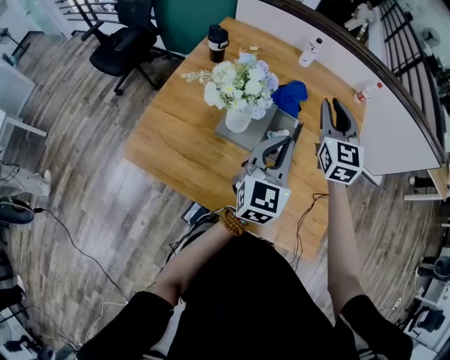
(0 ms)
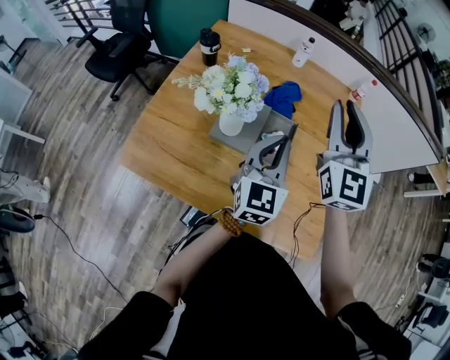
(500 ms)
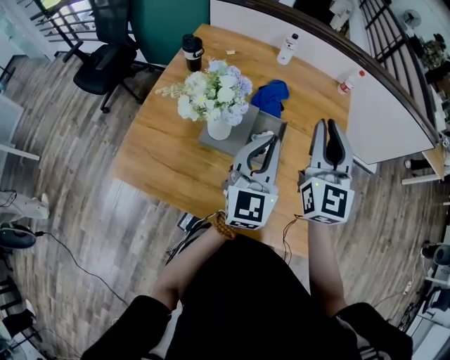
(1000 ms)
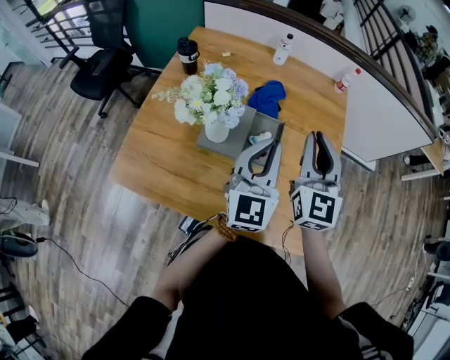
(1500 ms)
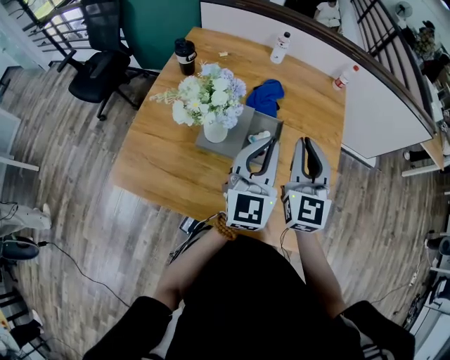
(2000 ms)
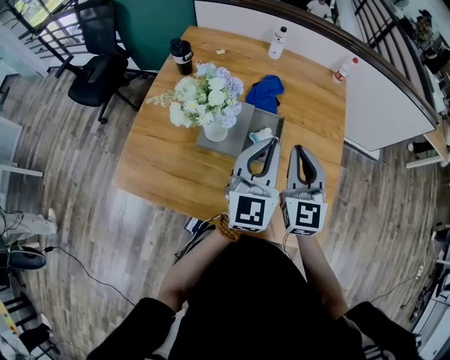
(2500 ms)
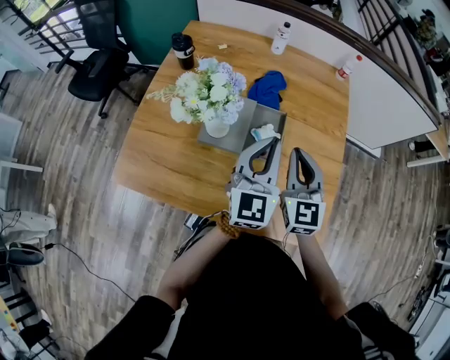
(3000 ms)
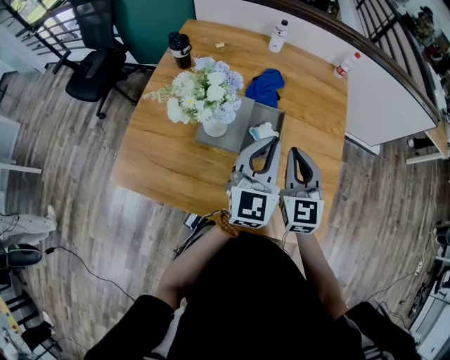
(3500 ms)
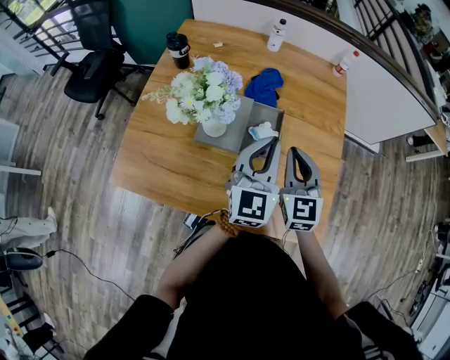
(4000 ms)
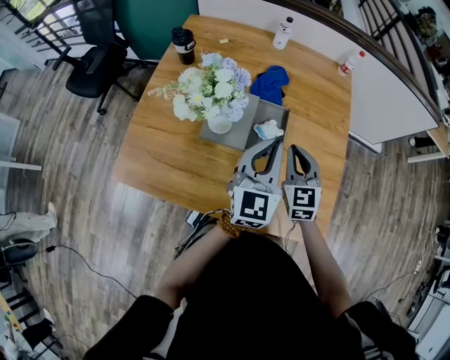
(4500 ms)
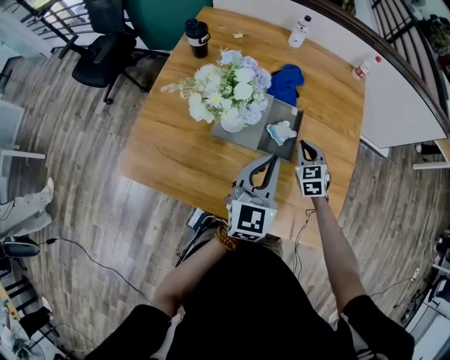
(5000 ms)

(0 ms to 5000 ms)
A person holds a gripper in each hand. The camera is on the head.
0 ms - 2500 ms: The right gripper travels backward by approximately 15 cm, and moves roughly 10 cm upward and comes back.
2500 ms - 5000 ms: The right gripper is displaced downward by approximately 20 cm, and tips its fingers downward by some 30 degrees. The left gripper heads downward, covering some 10 cm.

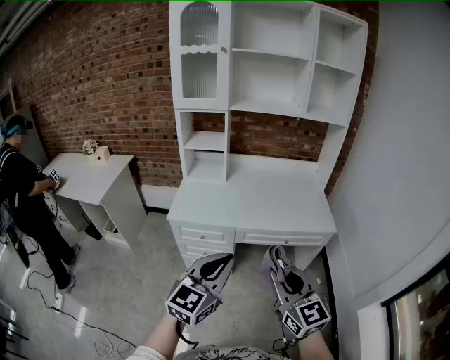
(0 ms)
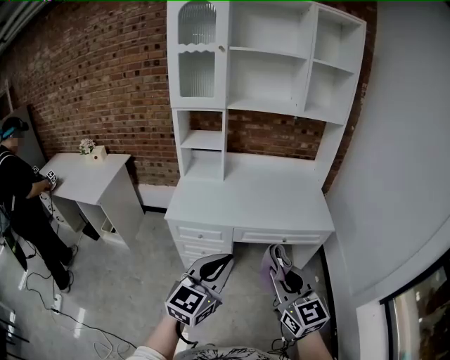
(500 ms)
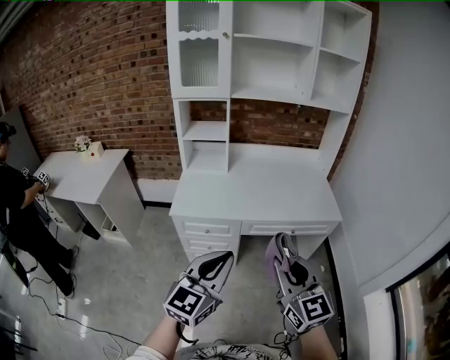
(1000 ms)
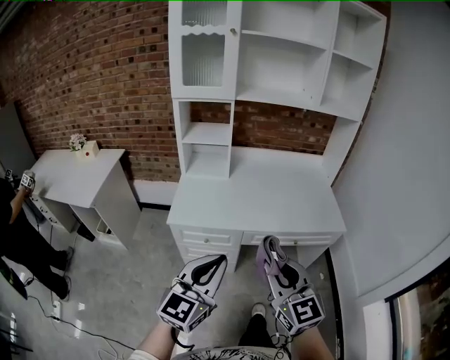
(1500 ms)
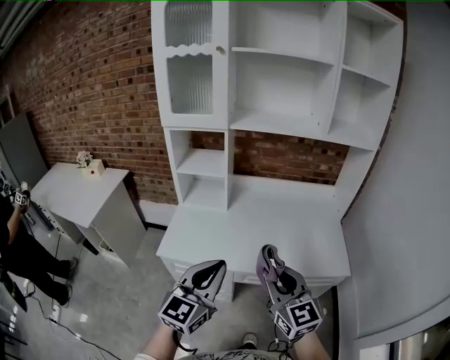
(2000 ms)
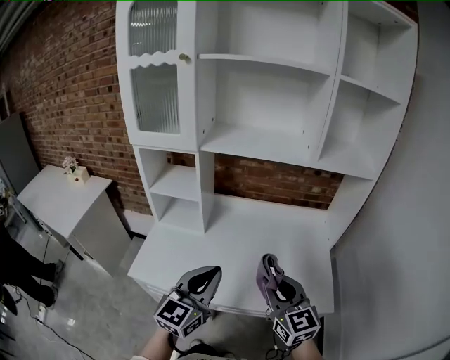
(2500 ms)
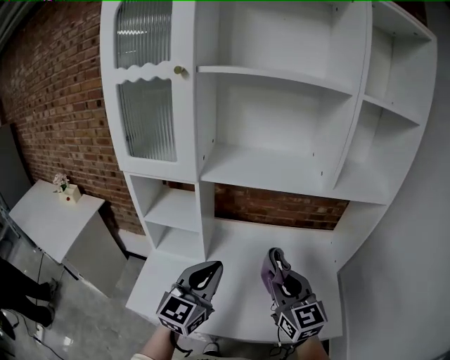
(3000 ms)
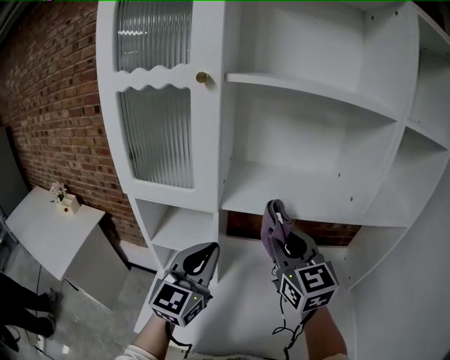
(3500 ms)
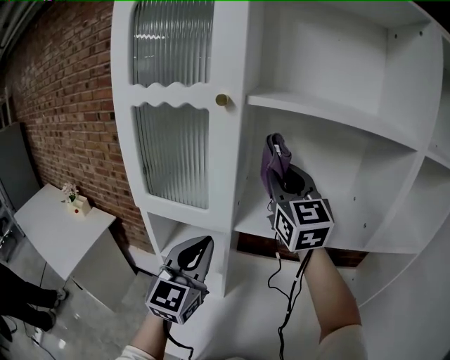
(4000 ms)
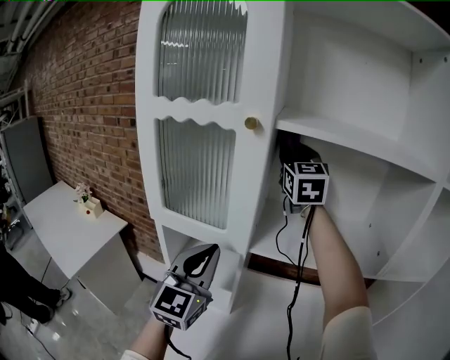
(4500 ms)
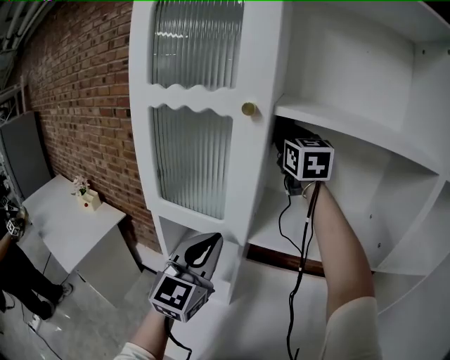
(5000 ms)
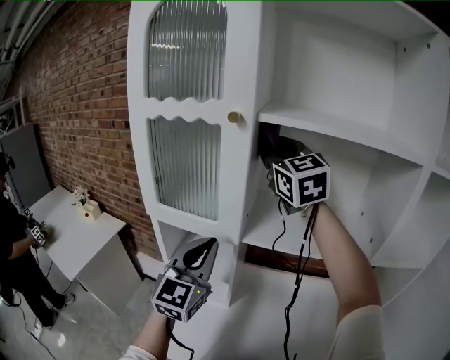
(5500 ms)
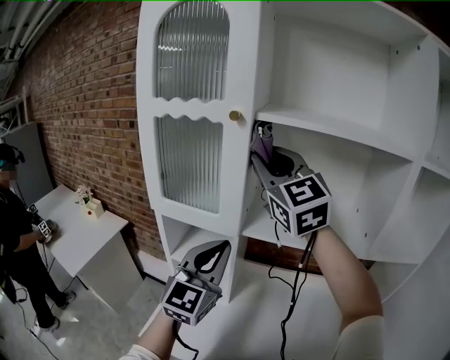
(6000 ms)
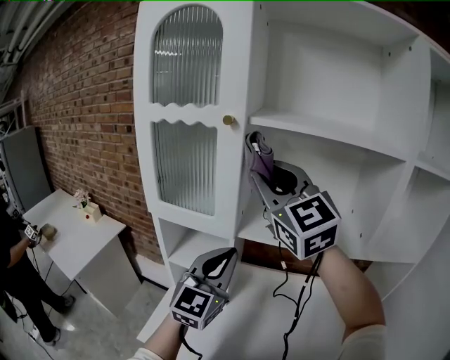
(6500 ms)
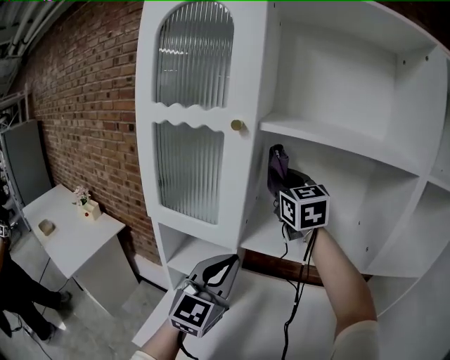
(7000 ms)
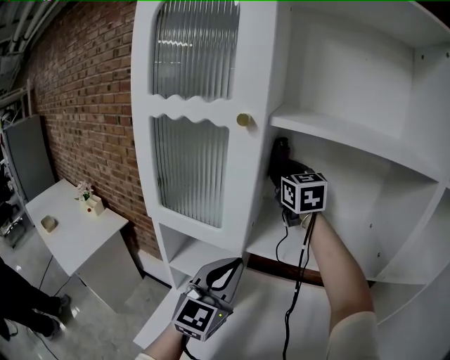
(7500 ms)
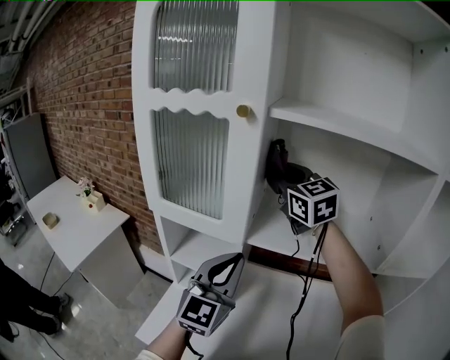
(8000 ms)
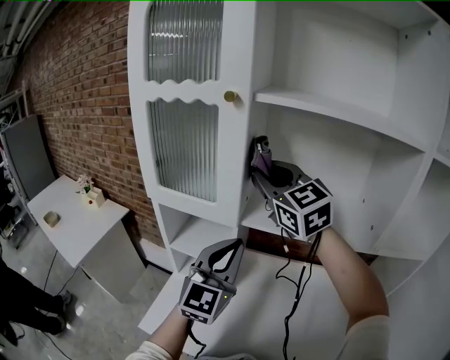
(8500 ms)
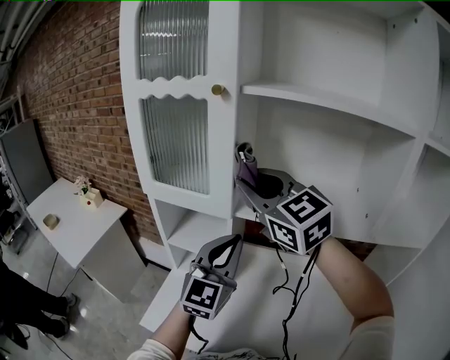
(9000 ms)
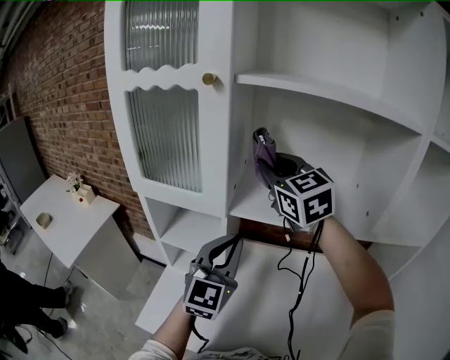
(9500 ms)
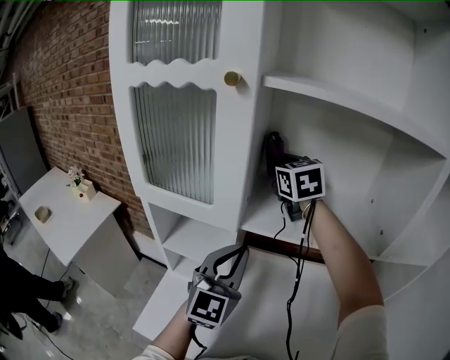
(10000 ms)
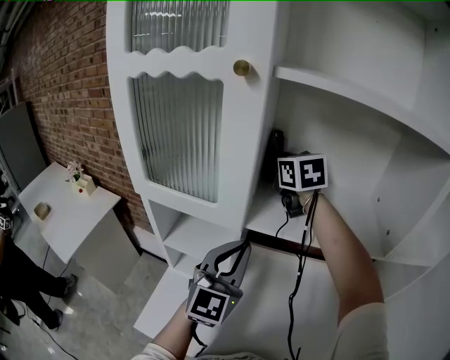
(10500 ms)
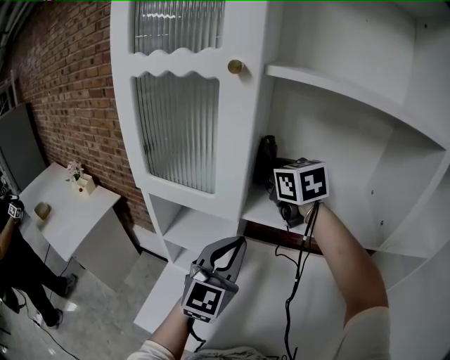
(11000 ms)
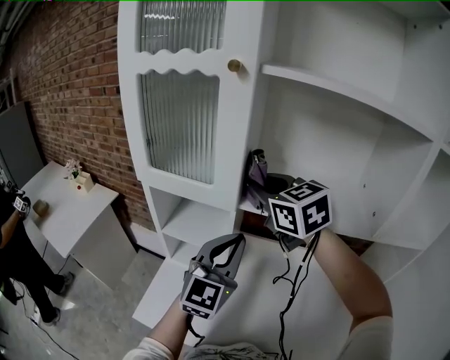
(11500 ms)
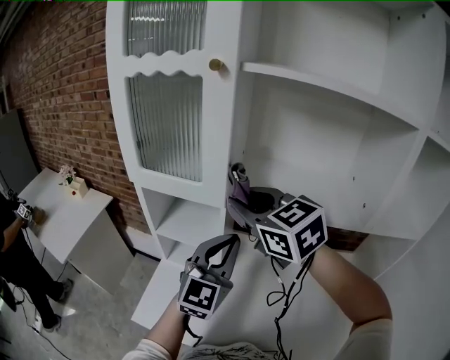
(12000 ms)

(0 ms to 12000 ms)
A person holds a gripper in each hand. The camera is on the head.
0 ms - 2000 ms: The two grippers go about 25 cm forward.
2000 ms - 4000 ms: The two grippers travel together, forward, roughly 50 cm. The right gripper is displaced upward by some 30 cm.
4000 ms - 6000 ms: The right gripper is displaced to the left and upward by about 10 cm, and travels forward and back again, about 15 cm each way.
6000 ms - 8000 ms: The left gripper moves some 5 cm; the right gripper swings forward and backward, approximately 25 cm each way, with 2 reversals.
8000 ms - 10000 ms: The right gripper shifts roughly 5 cm downward, and reaches approximately 15 cm backward, then returns.
10000 ms - 12000 ms: The right gripper is displaced backward by approximately 20 cm, and rotates approximately 20 degrees.

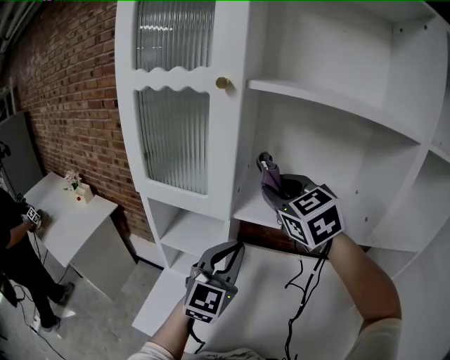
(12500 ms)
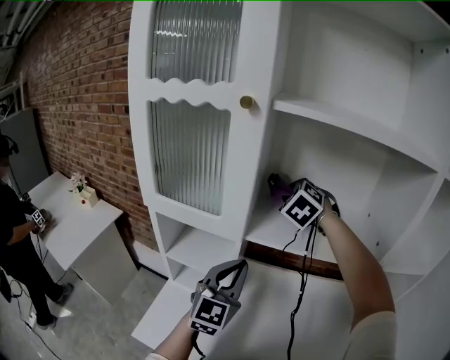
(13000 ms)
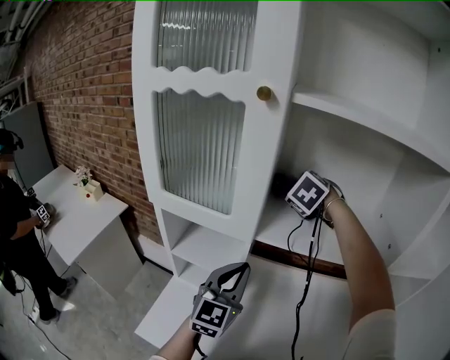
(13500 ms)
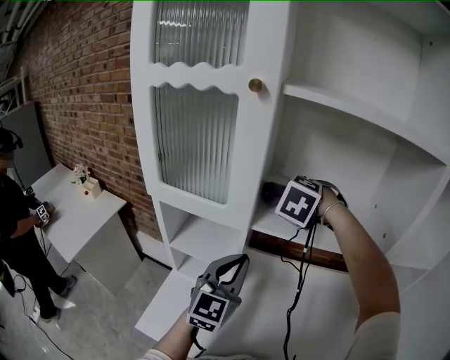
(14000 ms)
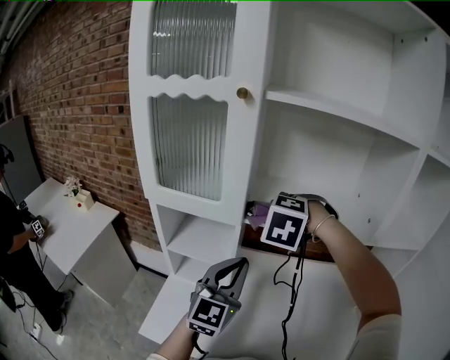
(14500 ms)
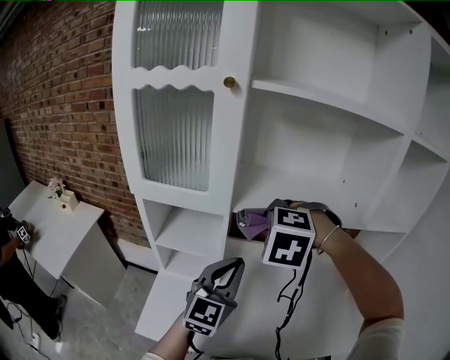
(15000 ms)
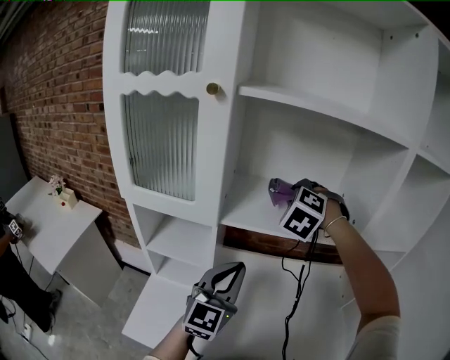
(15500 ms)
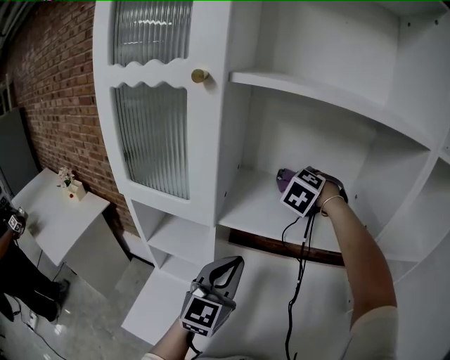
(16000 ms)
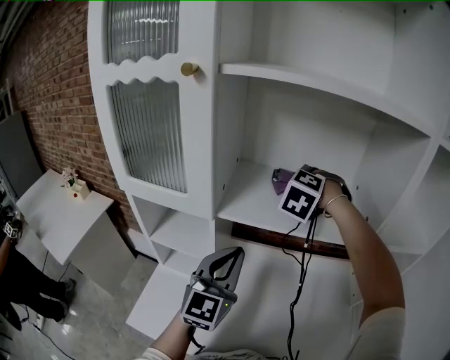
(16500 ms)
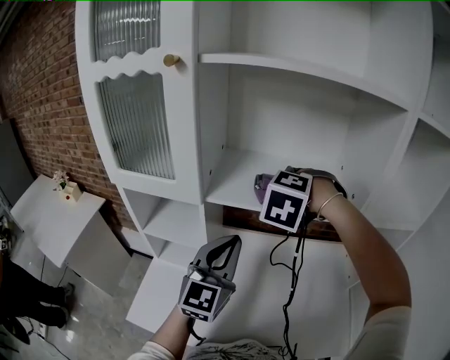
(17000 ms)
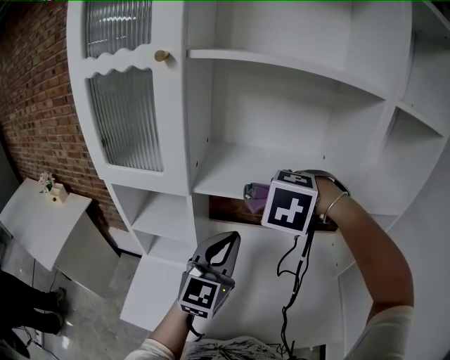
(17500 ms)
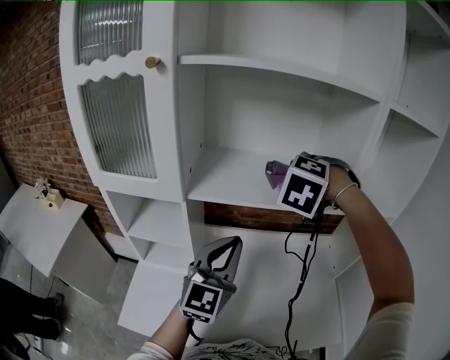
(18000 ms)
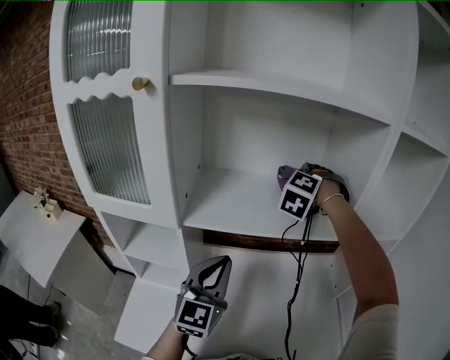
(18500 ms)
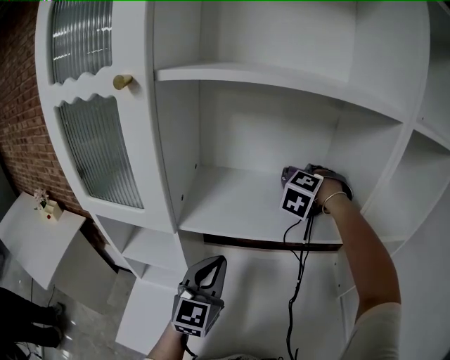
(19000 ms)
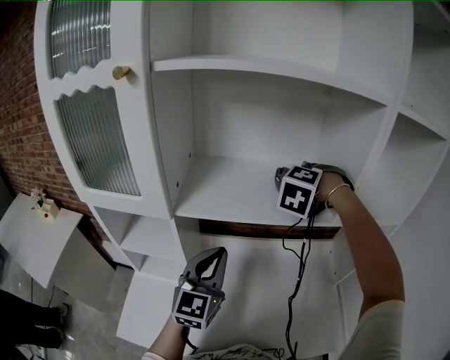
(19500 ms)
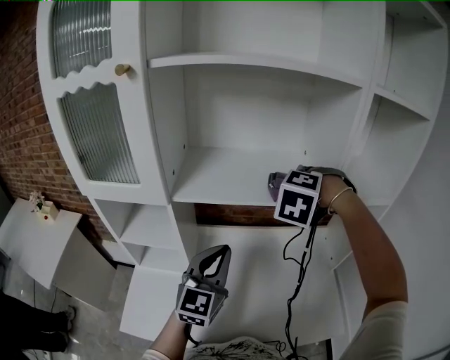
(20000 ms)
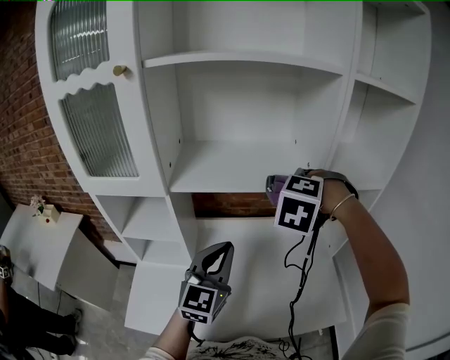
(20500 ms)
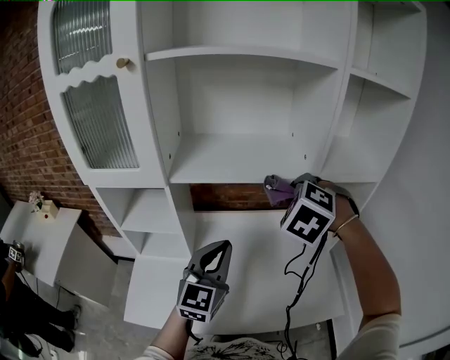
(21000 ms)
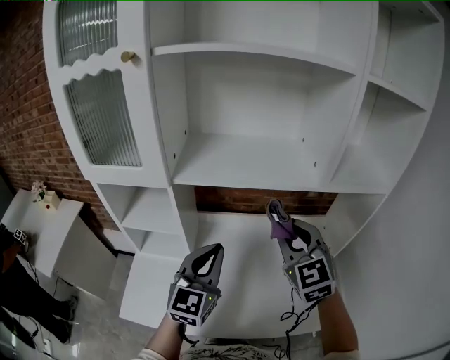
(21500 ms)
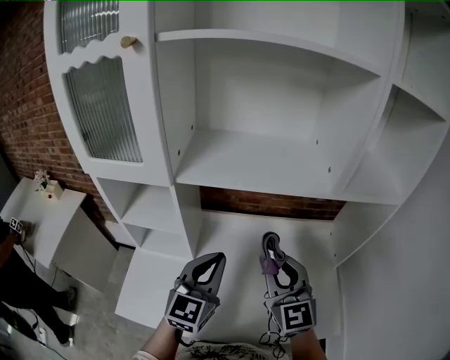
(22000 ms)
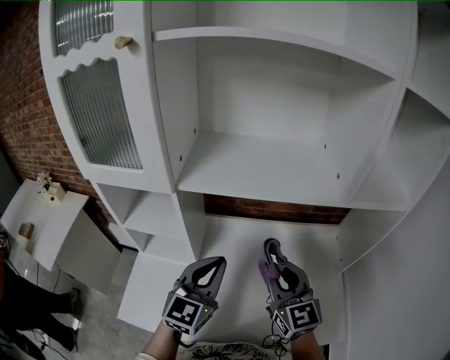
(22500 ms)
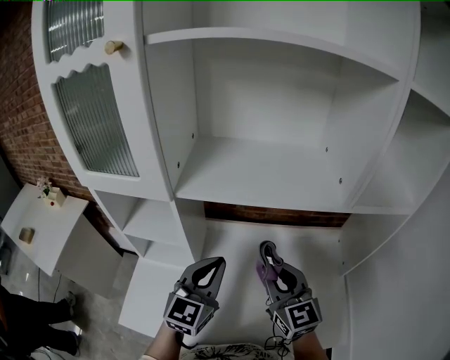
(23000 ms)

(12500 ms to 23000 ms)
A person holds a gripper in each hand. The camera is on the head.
12500 ms - 14500 ms: The right gripper moves downward, about 10 cm, travels forward and back again, approximately 15 cm each way, and angles its fingers downward, by approximately 30 degrees.
14500 ms - 16500 ms: The left gripper goes about 5 cm forward. Meanwhile the right gripper swings forward and backward, roughly 25 cm each way, with 2 reversals.
16500 ms - 19000 ms: The left gripper changes place by some 5 cm. The right gripper travels to the right by roughly 10 cm, and goes backward and returns, approximately 15 cm each way.
19000 ms - 21000 ms: The right gripper travels backward by about 25 cm, while the left gripper is displaced backward and to the right by some 15 cm.
21000 ms - 23000 ms: The right gripper goes roughly 15 cm downward and to the left, and tips its fingers upward by approximately 40 degrees. The left gripper is displaced forward by some 5 cm.
